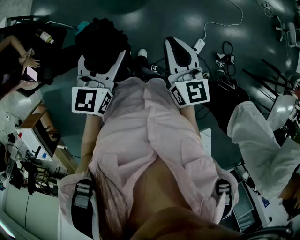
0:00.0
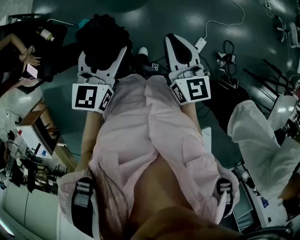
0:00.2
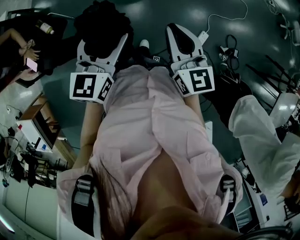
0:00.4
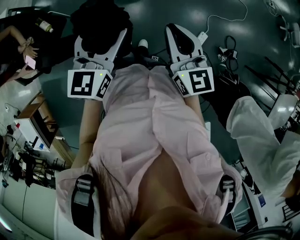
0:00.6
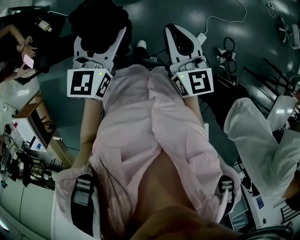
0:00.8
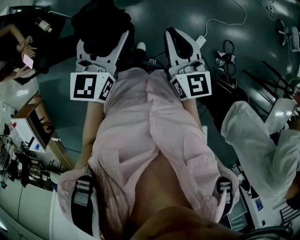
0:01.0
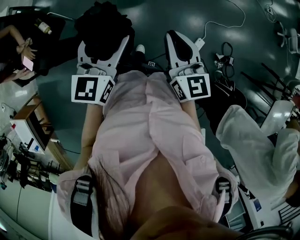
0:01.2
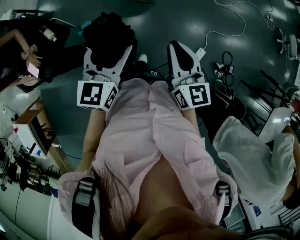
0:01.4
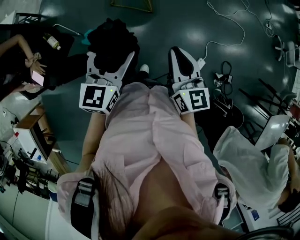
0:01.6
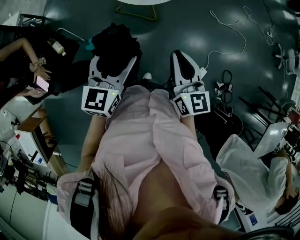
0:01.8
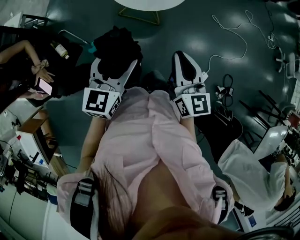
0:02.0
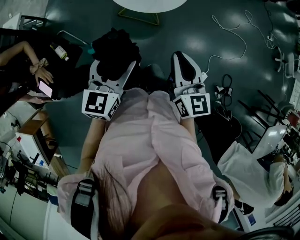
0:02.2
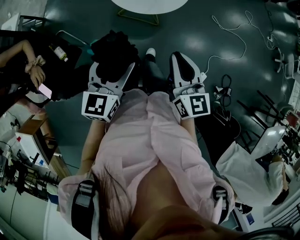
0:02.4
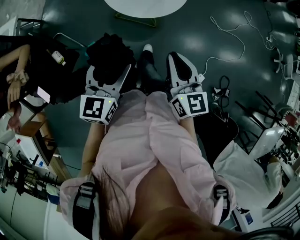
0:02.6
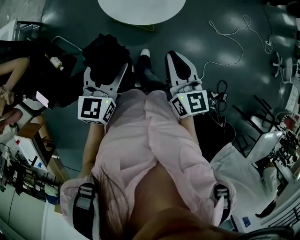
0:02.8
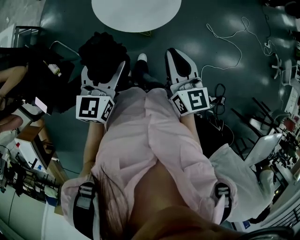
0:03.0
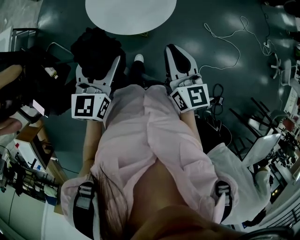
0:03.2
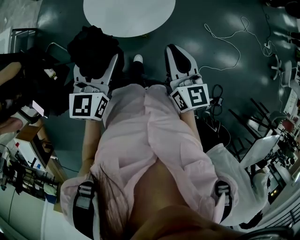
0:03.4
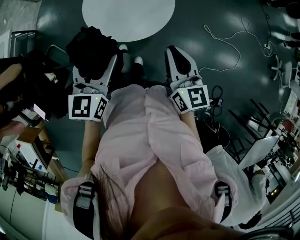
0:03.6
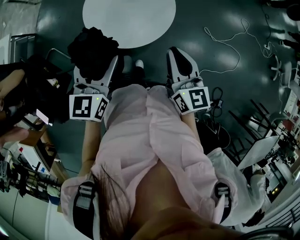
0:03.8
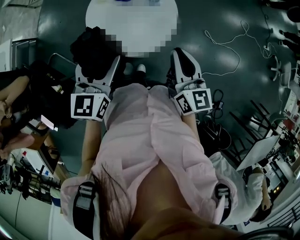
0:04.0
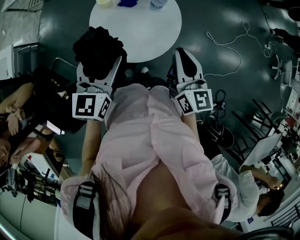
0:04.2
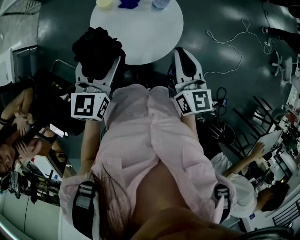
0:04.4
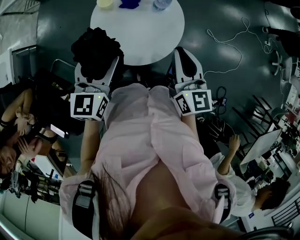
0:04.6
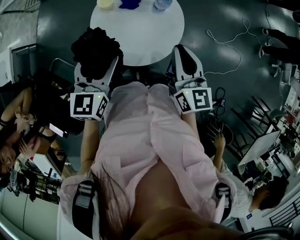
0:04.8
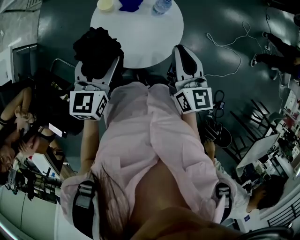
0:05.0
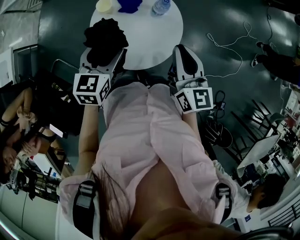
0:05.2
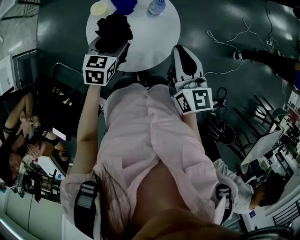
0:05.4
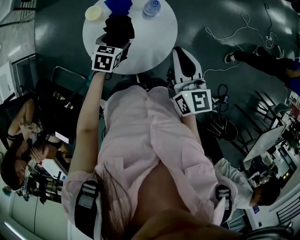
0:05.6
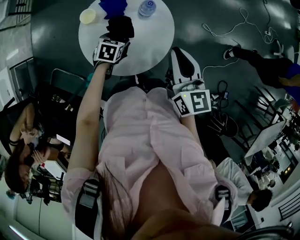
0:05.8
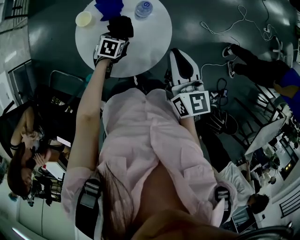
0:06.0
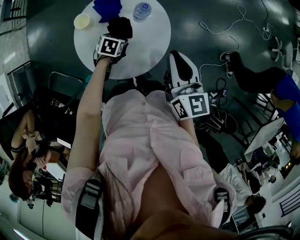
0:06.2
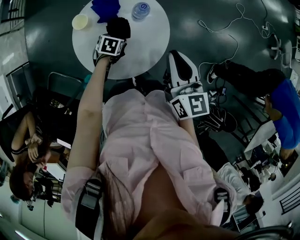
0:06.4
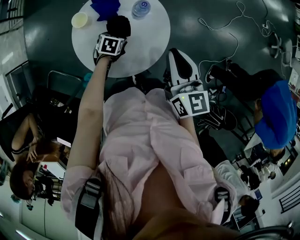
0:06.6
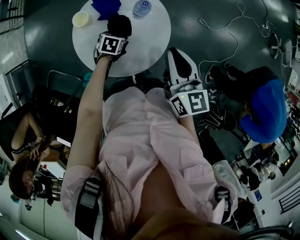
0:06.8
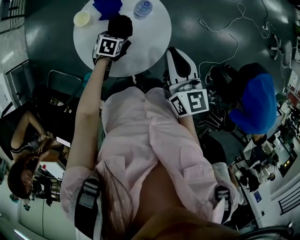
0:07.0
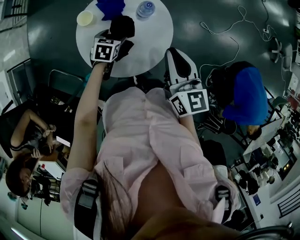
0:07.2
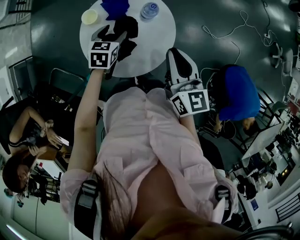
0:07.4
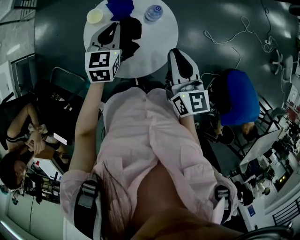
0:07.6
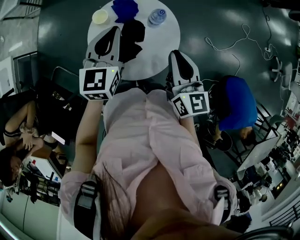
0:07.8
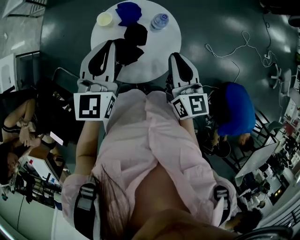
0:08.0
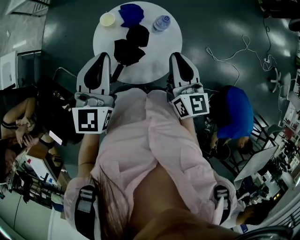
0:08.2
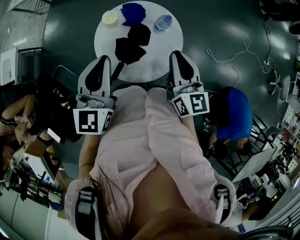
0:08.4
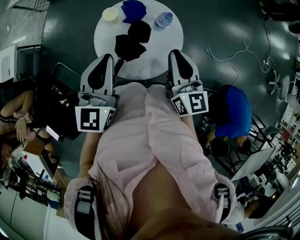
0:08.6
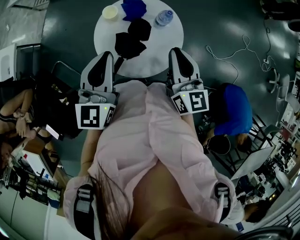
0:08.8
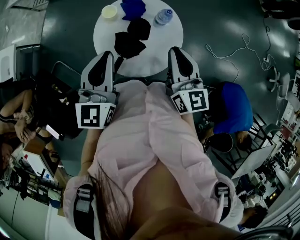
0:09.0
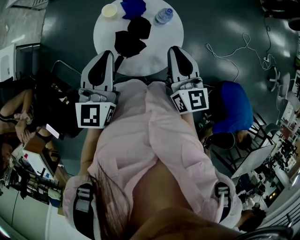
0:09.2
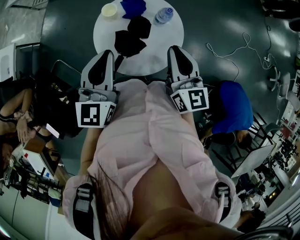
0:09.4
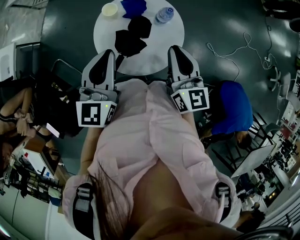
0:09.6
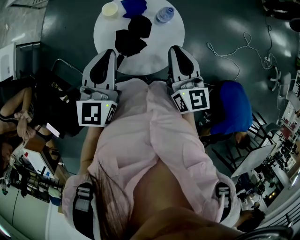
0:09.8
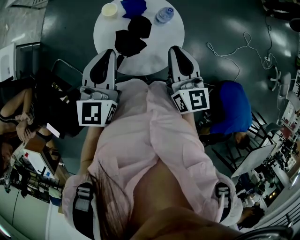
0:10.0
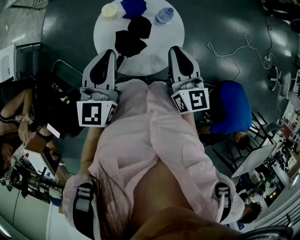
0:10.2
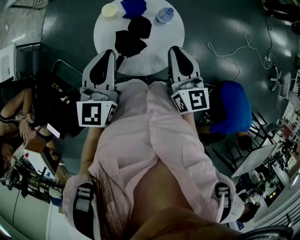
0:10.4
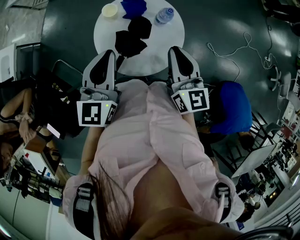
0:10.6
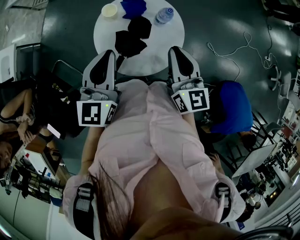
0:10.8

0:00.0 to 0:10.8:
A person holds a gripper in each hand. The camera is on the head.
0:00.0 to 0:01.6: Both grippers travel together forward, approximately 5 cm.
0:01.6 to 0:03.0: The two grippers go roughly 20 cm forward.
0:03.0 to 0:04.6: Both grippers travel together forward, roughly 20 cm.
0:04.6 to 0:06.2: The right gripper shifts about 5 cm forward. Meanwhile the left gripper is displaced downward and forward by some 35 cm, and points its fingers about 40 degrees further downward.
0:06.2 to 0:07.8: The left gripper goes some 30 cm upward, tips its fingers upward by approximately 50 degrees, and closes up.
0:07.8 to 0:09.2: The left gripper heads backward and upward, covering some 10 cm.
0:09.2 to 0:10.8: Both grippers stay about where they are.

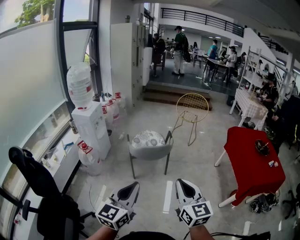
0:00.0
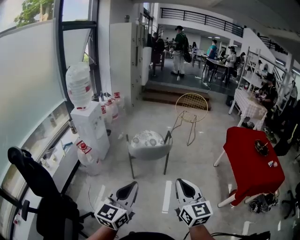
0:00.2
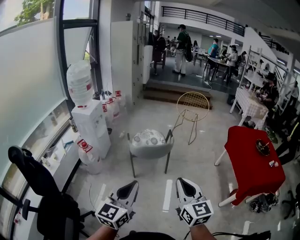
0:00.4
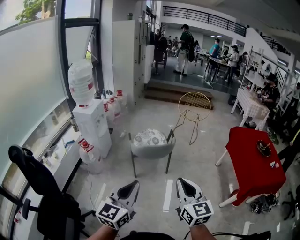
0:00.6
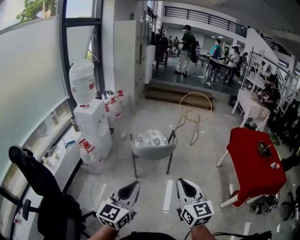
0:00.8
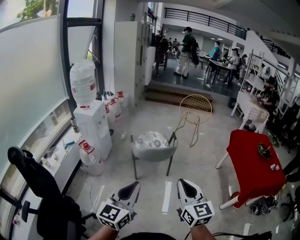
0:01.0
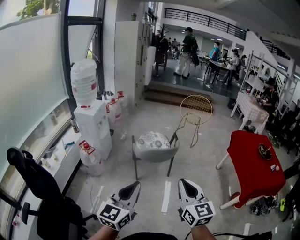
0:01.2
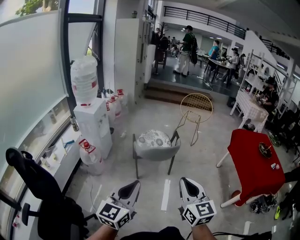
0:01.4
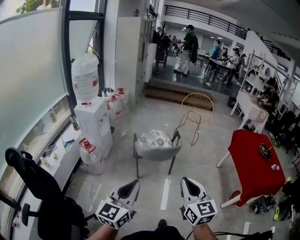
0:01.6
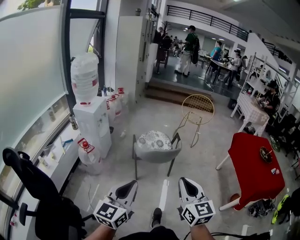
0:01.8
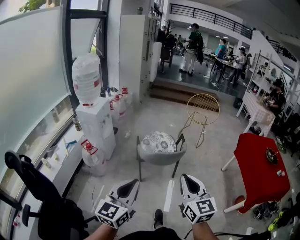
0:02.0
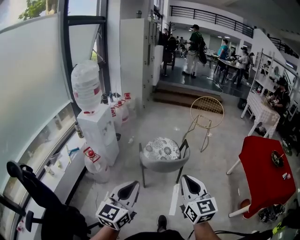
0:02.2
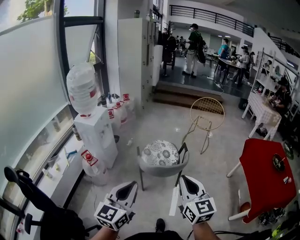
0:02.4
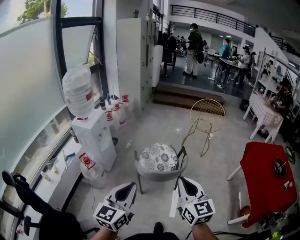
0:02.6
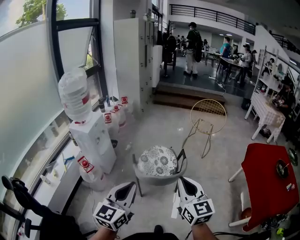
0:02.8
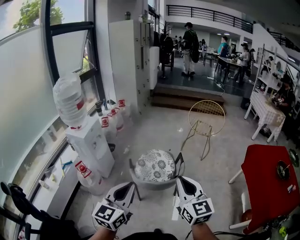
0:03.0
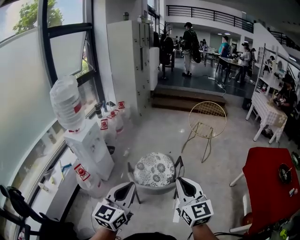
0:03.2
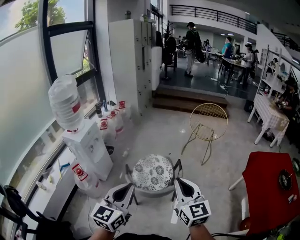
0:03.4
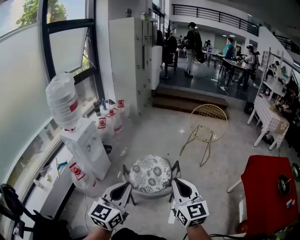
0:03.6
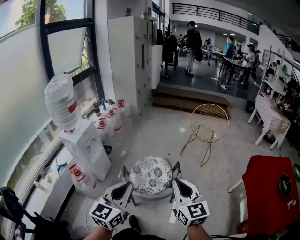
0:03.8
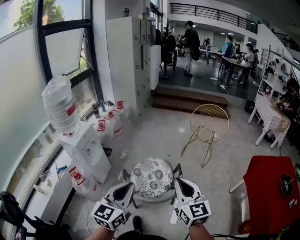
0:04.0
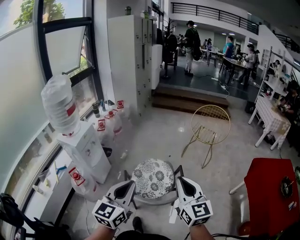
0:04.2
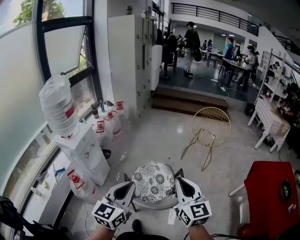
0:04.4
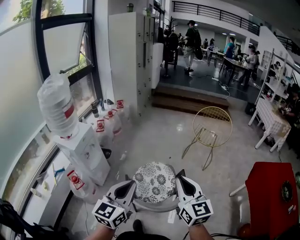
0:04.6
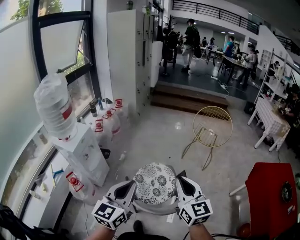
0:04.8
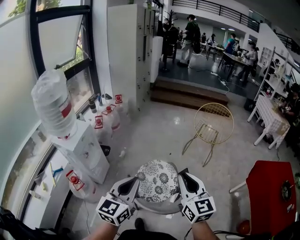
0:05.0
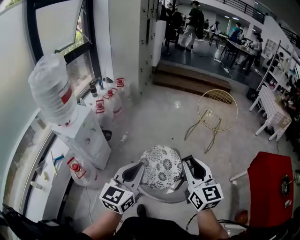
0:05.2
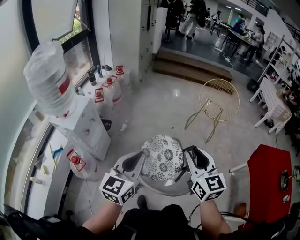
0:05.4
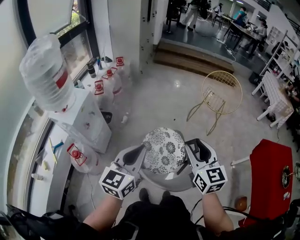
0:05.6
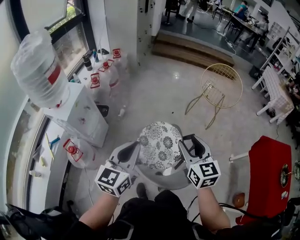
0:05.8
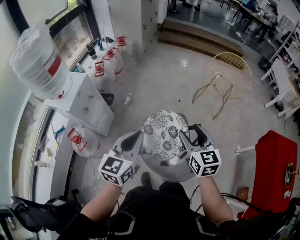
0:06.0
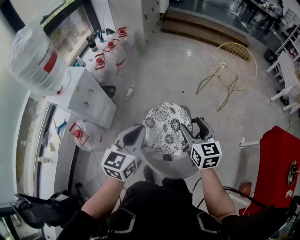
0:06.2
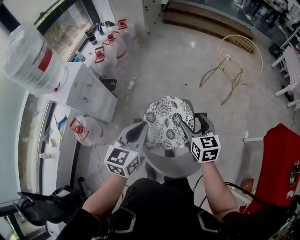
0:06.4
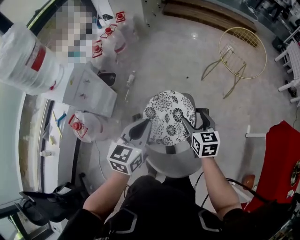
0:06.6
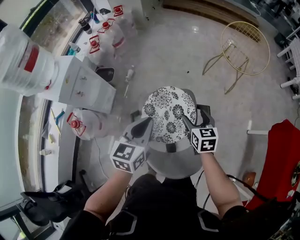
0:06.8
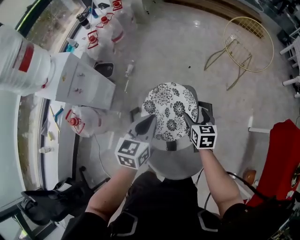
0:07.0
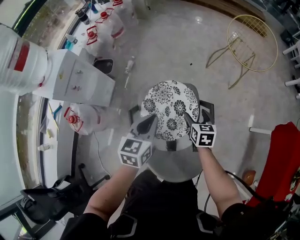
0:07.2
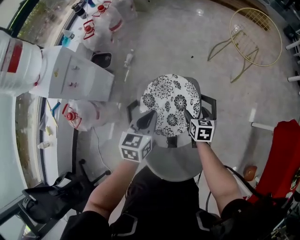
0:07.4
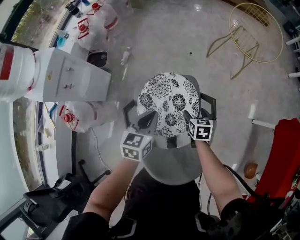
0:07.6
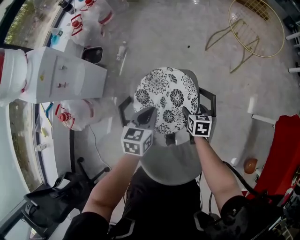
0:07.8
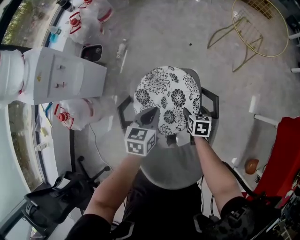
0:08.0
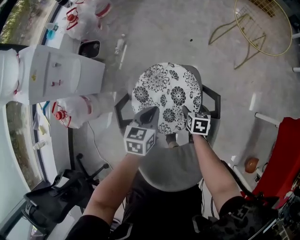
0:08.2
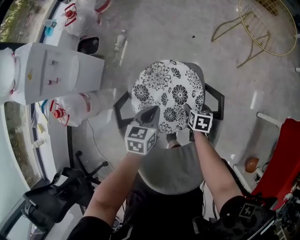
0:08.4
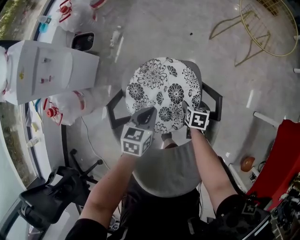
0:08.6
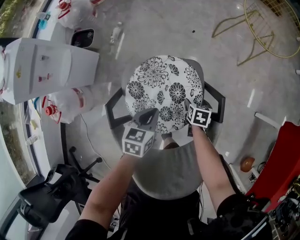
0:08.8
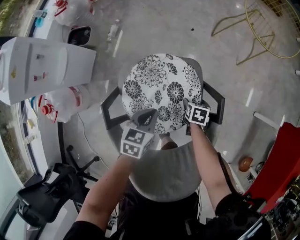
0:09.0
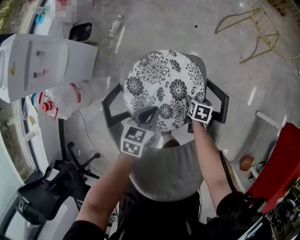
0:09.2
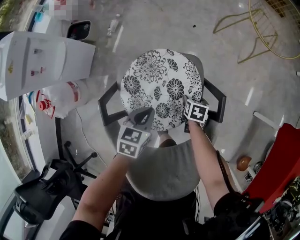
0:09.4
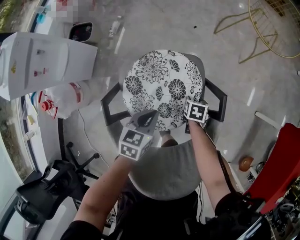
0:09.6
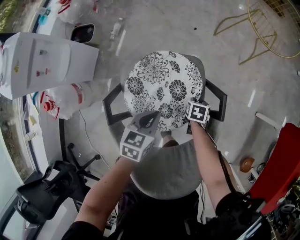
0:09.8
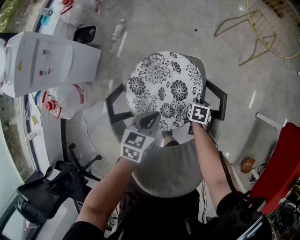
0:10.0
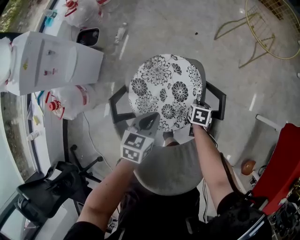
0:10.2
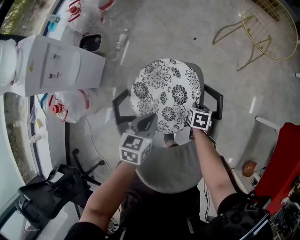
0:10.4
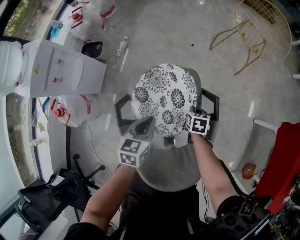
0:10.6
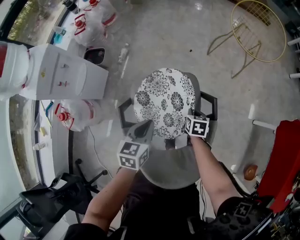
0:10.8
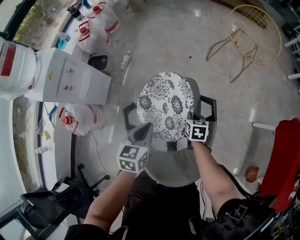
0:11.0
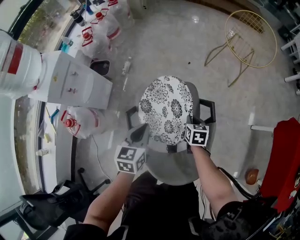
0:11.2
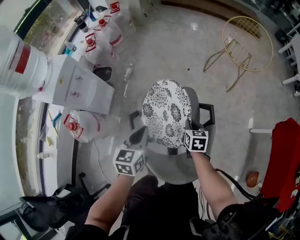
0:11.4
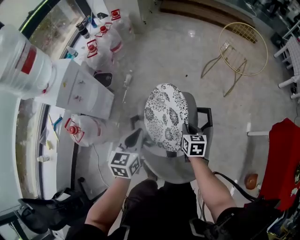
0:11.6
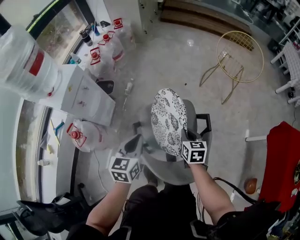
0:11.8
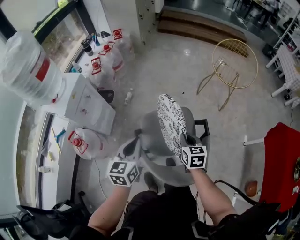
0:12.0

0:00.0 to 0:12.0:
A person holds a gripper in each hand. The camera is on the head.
0:00.0 to 0:01.6: Both grippers travel together to the left, roughly 10 cm.
0:01.6 to 0:03.0: Both grippers move forward, roughly 30 cm.
0:03.0 to 0:04.4: Both grippers move forward, roughly 20 cm.
0:04.4 to 0:06.0: The grippers both shift forward, downward and to the left by about 20 cm. The right gripper opens up.
0:06.0 to 0:07.6: Both grippers move downward, some 35 cm. The right gripper points its fingers about 40 degrees further downward. Meanwhile the left gripper turns by some 20 degrees.
0:07.6 to 0:09.0: The two grippers go some 20 cm downward.
0:09.0 to 0:10.4: The grippers both shift upward by roughly 5 cm. The right gripper closes its fingers.
0:10.4 to 0:12.0: The right gripper travels upward by roughly 30 cm, and rotates roughly 30 degrees, while the left gripper shifts some 25 cm upward and to the left, and changes its angle by about 20 degrees.

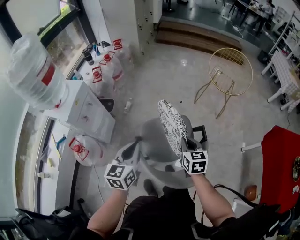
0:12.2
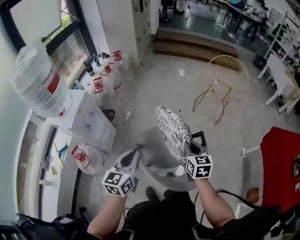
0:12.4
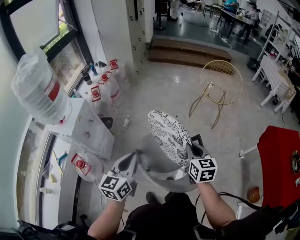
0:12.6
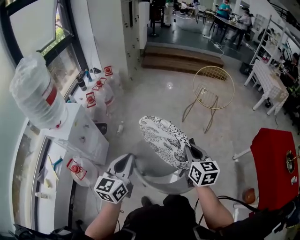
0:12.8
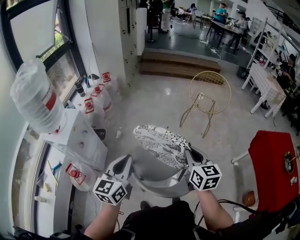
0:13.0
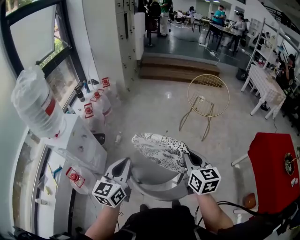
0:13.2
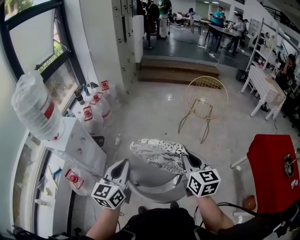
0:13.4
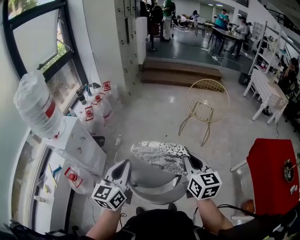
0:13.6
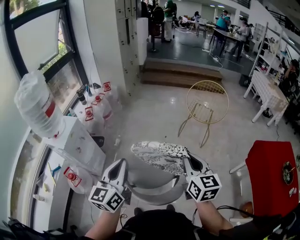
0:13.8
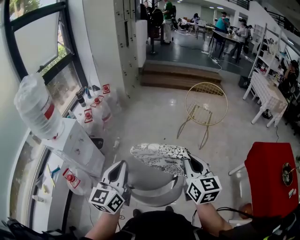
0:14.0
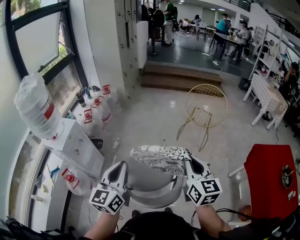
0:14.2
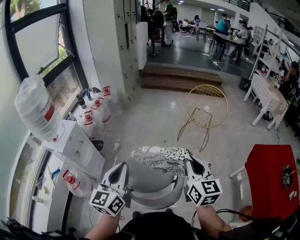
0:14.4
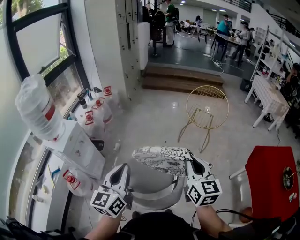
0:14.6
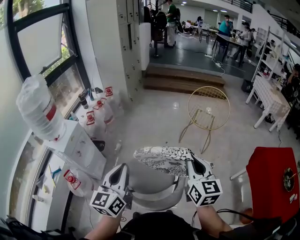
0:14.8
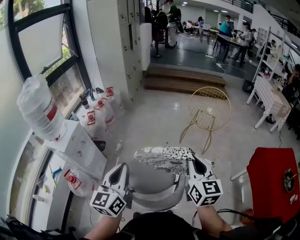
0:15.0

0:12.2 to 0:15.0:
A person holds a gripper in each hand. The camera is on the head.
0:12.2 to 0:13.6: The grippers both shift upward and to the right by some 20 cm. The right gripper turns by roughly 20 degrees.
0:13.6 to 0:15.0: The right gripper changes place by roughly 5 cm.
